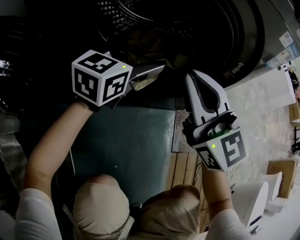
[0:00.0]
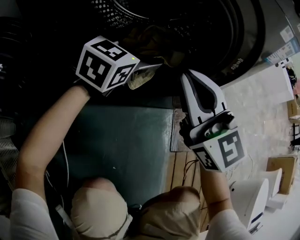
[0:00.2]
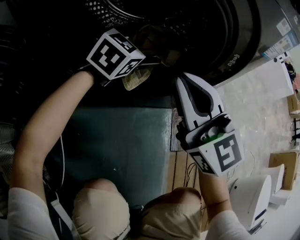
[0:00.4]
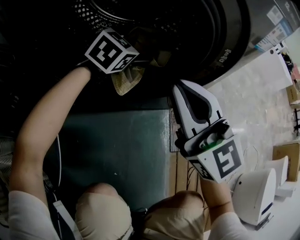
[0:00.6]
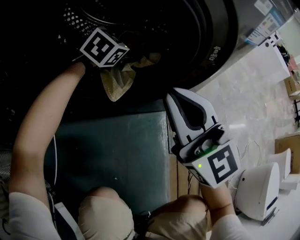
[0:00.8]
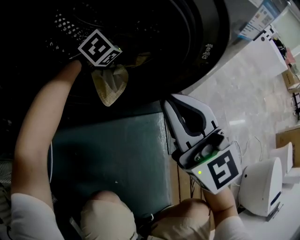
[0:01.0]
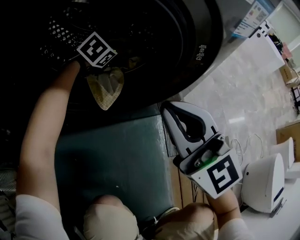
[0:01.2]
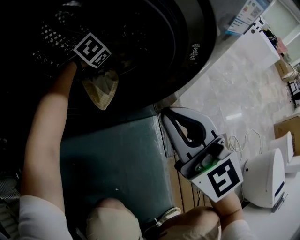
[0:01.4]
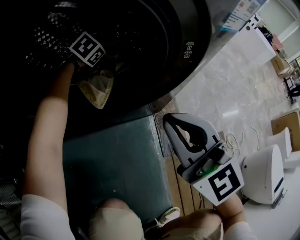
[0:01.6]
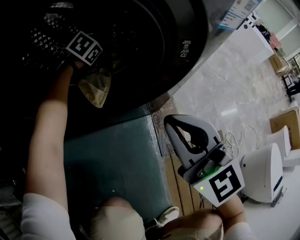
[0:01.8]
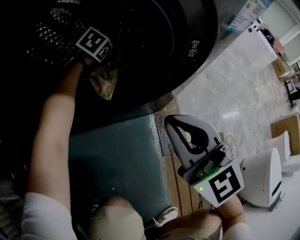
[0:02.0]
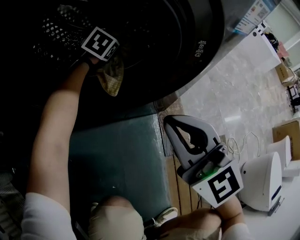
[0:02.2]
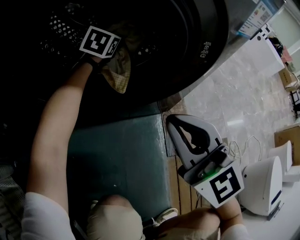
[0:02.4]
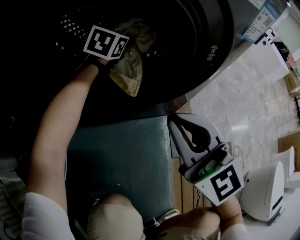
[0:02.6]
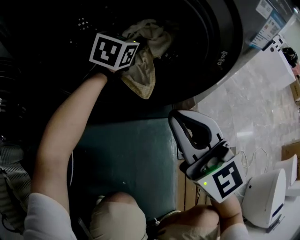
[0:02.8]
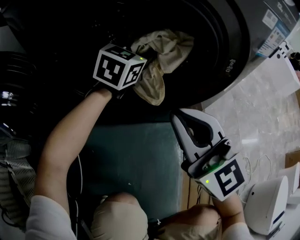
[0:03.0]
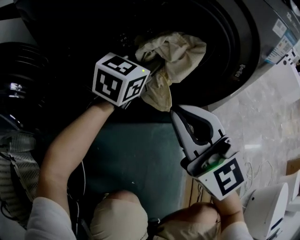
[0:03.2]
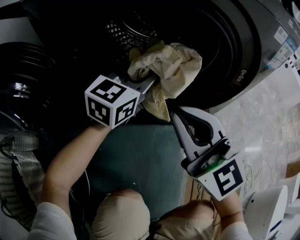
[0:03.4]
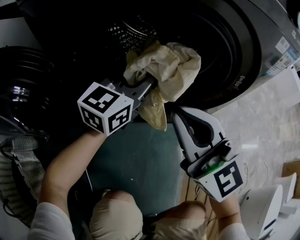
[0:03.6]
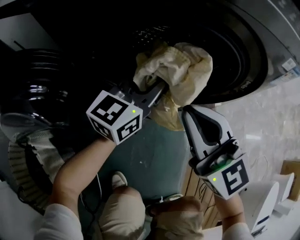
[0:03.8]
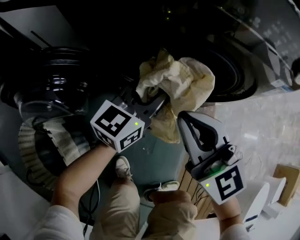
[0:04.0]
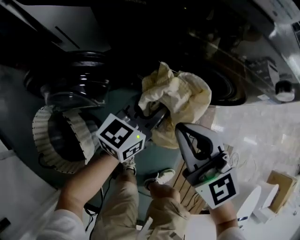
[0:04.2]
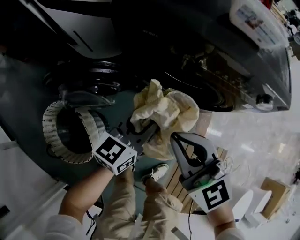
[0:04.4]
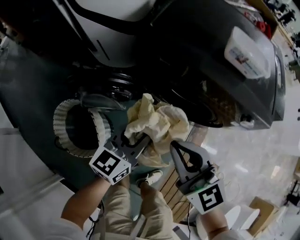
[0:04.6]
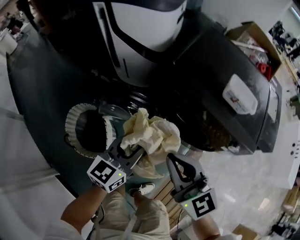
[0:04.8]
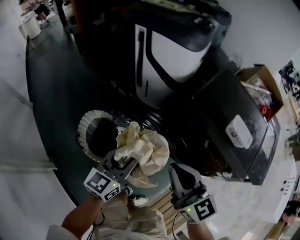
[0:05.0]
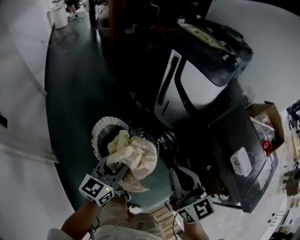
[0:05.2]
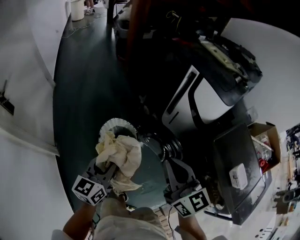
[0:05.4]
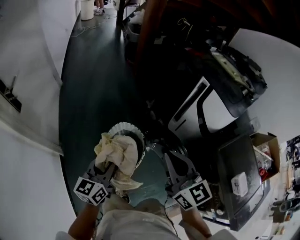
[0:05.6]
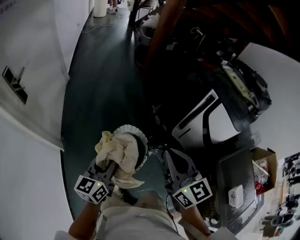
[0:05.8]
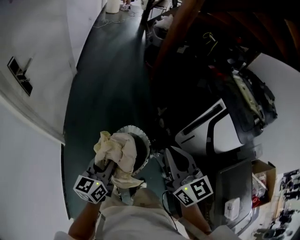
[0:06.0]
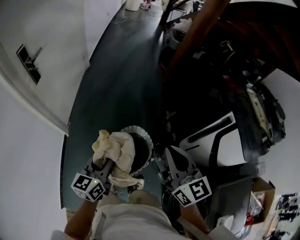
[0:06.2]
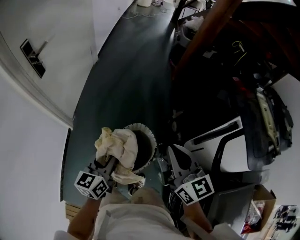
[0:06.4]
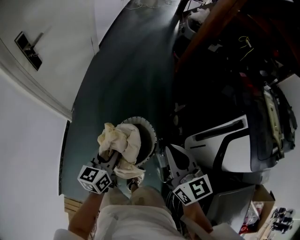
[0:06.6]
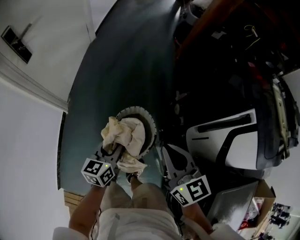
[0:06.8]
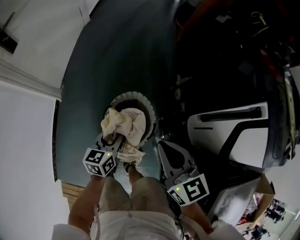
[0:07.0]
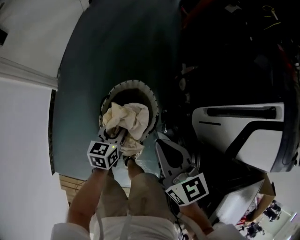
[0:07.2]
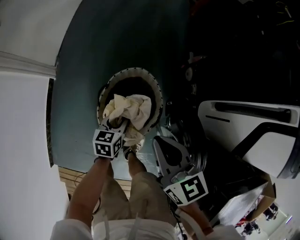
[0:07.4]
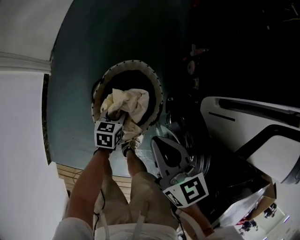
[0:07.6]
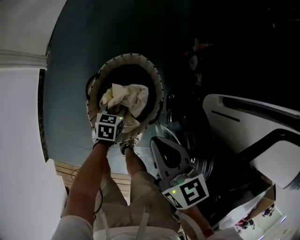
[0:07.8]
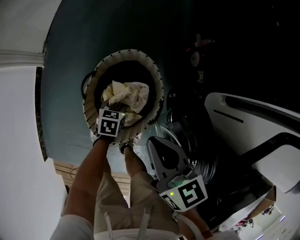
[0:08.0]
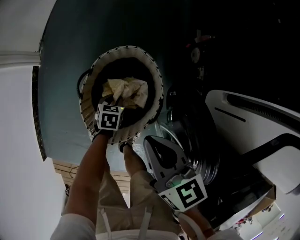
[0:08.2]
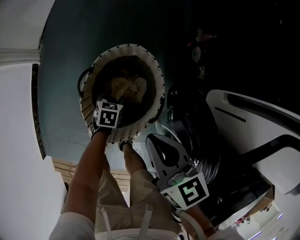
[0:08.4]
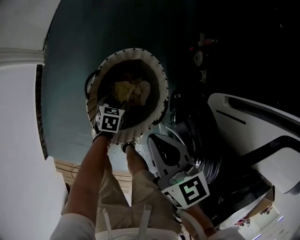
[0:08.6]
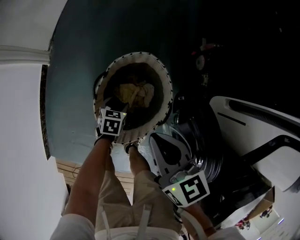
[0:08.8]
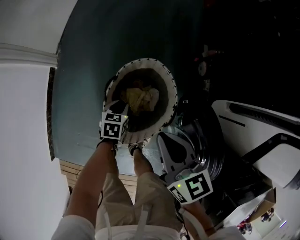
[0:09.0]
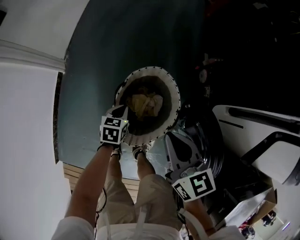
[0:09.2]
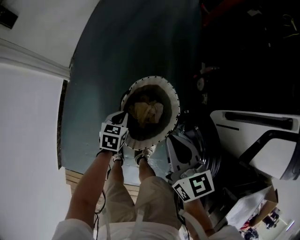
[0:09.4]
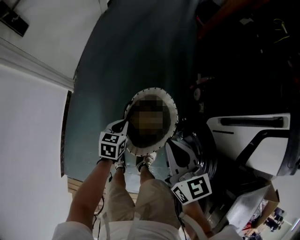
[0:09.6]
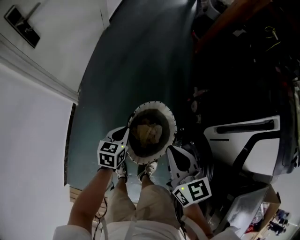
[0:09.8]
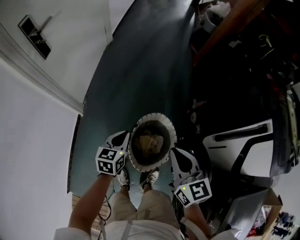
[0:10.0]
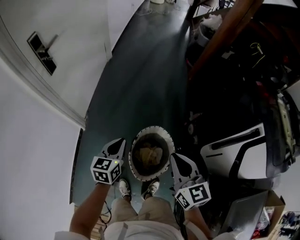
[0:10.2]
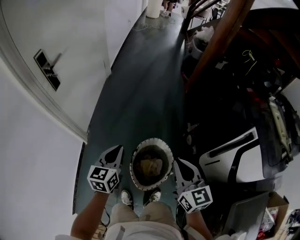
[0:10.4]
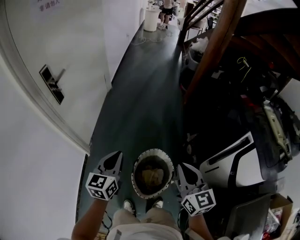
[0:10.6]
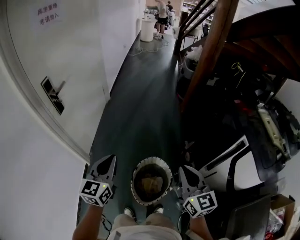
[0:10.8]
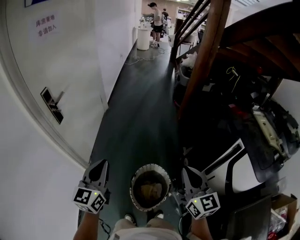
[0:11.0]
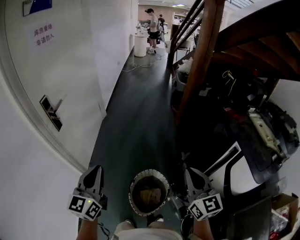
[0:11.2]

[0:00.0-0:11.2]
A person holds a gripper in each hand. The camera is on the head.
0:00.0 to 0:01.6: The right gripper is displaced to the right and downward by roughly 10 cm. The left gripper moves forward and downward, some 25 cm, and tips its fingers downward by approximately 40 degrees.
0:01.6 to 0:03.2: The right gripper is displaced to the left by some 10 cm; the left gripper goes about 25 cm upward and backward, points its fingers about 40 degrees further upward, and closes up.
0:03.2 to 0:04.8: The grippers both shift upward by some 50 cm. The right gripper rotates about 30 degrees; the left gripper rotates approximately 40 degrees.
0:04.8 to 0:06.4: The pair of grippers is taken approximately 50 cm. The left gripper rotates about 80 degrees, while the right gripper swivels about 50 degrees.
0:06.4 to 0:08.0: The two grippers go roughly 50 cm downward. The right gripper turns by roughly 30 degrees. The left gripper angles its fingers downward, by approximately 50 degrees.
0:08.0 to 0:09.6: Both grippers travel together upward and to the left, about 25 cm.
0:09.6 to 0:11.2: The left gripper shifts approximately 60 cm upward, and angles its fingers upward, by about 50 degrees. Meanwhile the right gripper is displaced upward by some 35 cm, and swivels approximately 30 degrees.

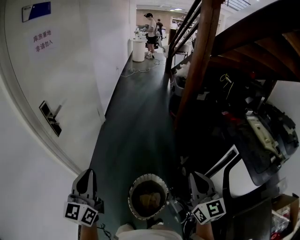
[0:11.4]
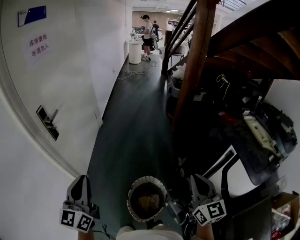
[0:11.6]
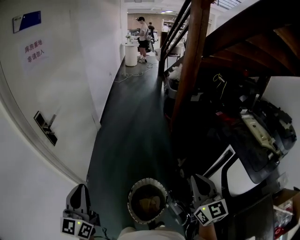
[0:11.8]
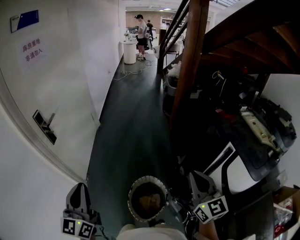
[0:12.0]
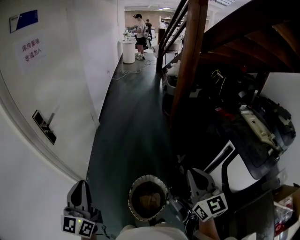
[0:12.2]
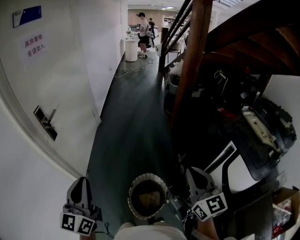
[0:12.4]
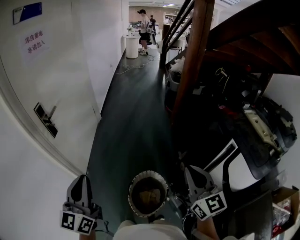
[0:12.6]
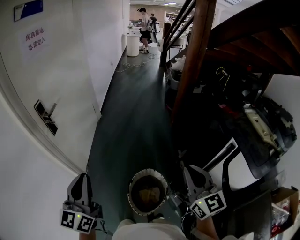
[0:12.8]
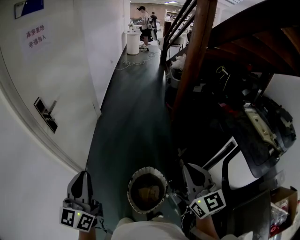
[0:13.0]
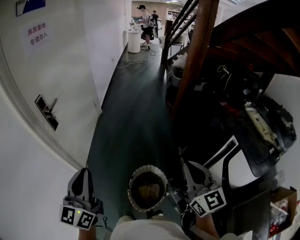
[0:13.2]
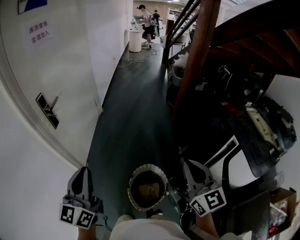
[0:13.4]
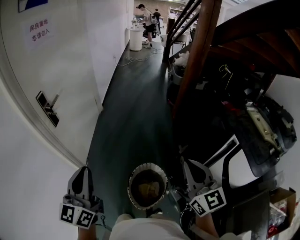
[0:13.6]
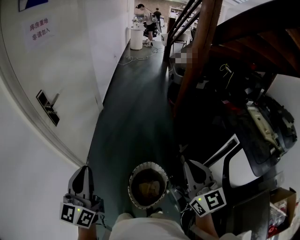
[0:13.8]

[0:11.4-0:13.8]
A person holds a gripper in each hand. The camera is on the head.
0:11.4 to 0:13.8: The grippers stay close to where they were, moving slightly.

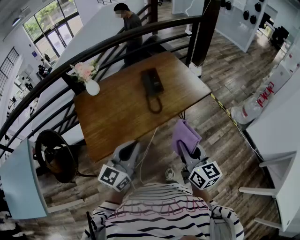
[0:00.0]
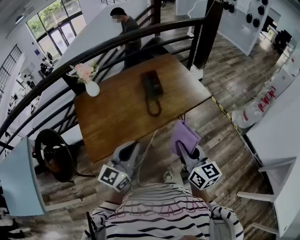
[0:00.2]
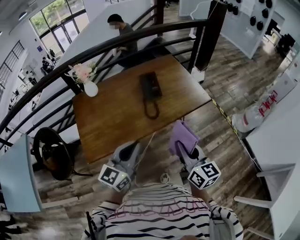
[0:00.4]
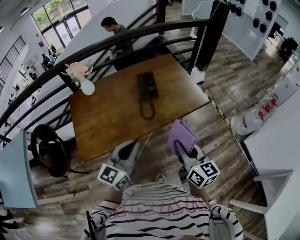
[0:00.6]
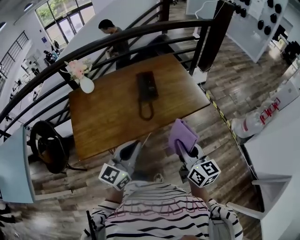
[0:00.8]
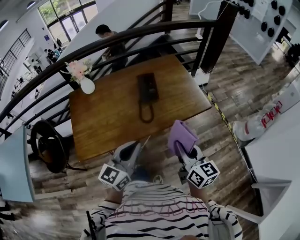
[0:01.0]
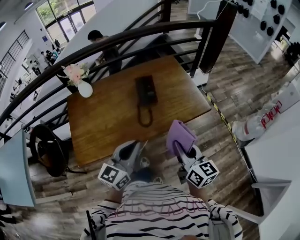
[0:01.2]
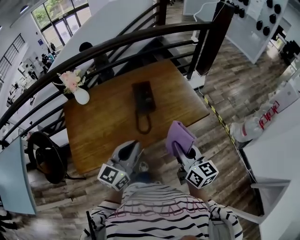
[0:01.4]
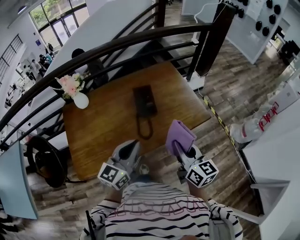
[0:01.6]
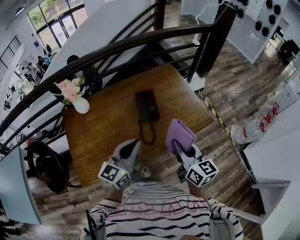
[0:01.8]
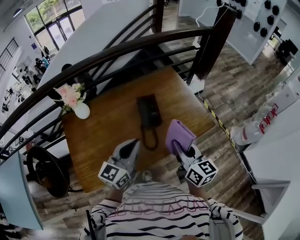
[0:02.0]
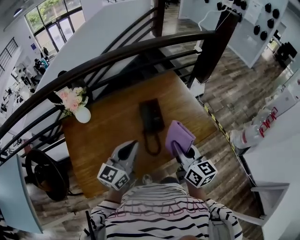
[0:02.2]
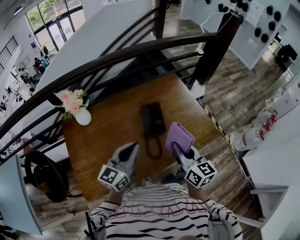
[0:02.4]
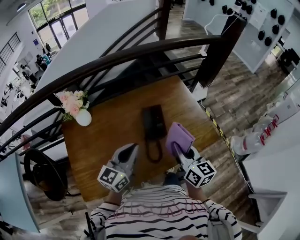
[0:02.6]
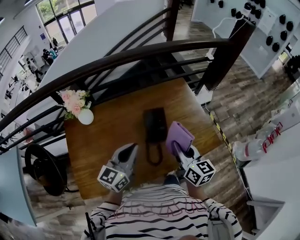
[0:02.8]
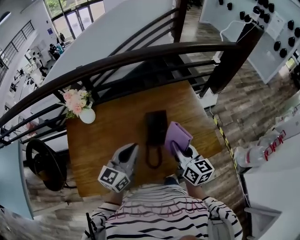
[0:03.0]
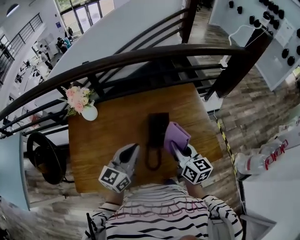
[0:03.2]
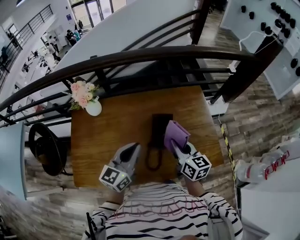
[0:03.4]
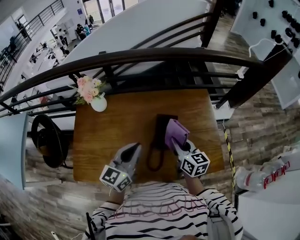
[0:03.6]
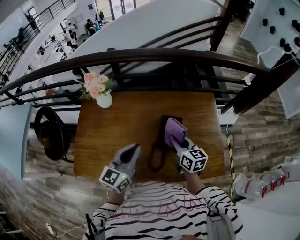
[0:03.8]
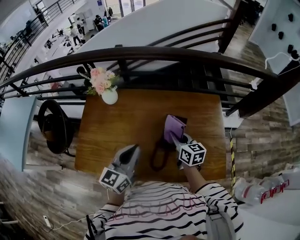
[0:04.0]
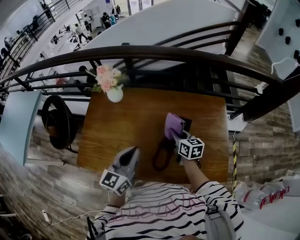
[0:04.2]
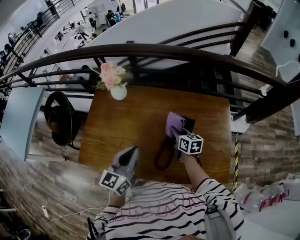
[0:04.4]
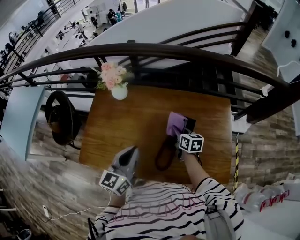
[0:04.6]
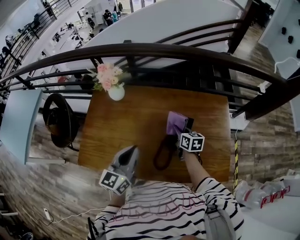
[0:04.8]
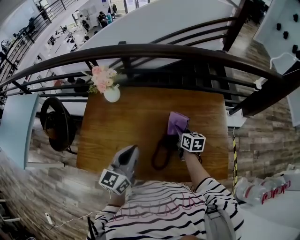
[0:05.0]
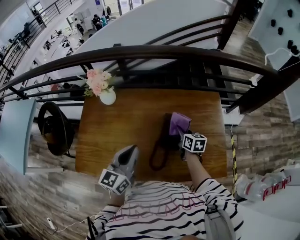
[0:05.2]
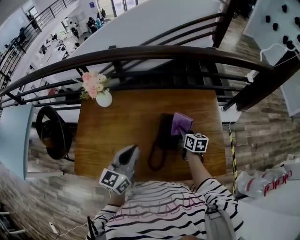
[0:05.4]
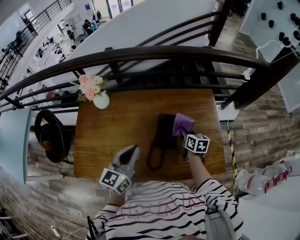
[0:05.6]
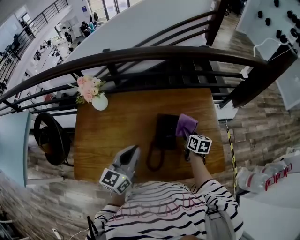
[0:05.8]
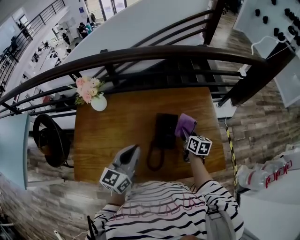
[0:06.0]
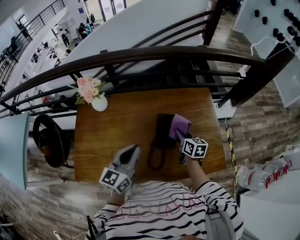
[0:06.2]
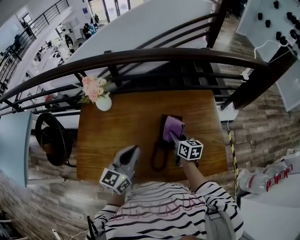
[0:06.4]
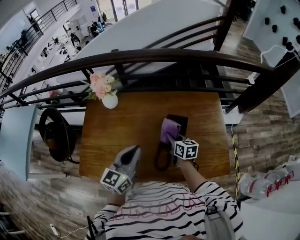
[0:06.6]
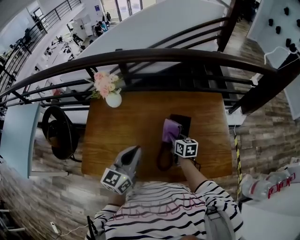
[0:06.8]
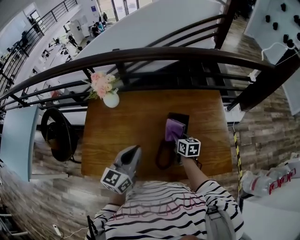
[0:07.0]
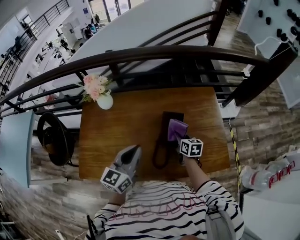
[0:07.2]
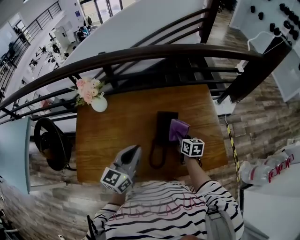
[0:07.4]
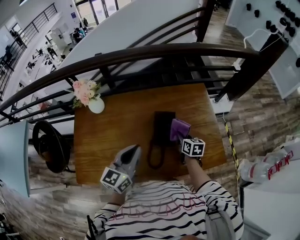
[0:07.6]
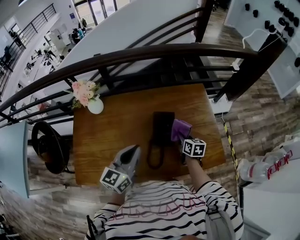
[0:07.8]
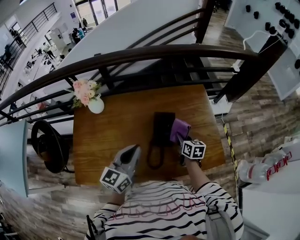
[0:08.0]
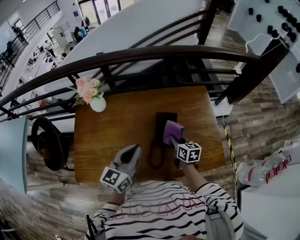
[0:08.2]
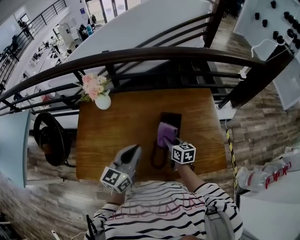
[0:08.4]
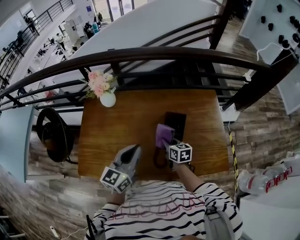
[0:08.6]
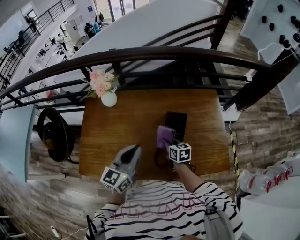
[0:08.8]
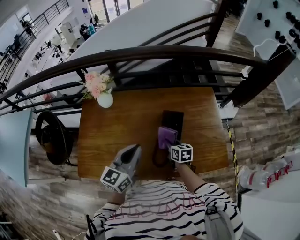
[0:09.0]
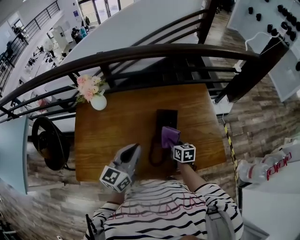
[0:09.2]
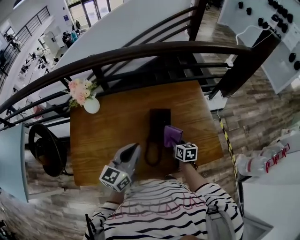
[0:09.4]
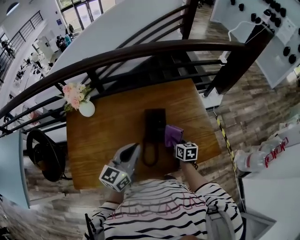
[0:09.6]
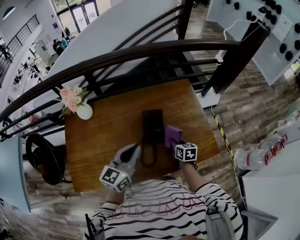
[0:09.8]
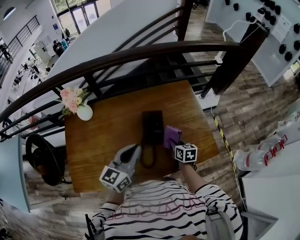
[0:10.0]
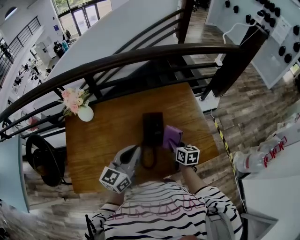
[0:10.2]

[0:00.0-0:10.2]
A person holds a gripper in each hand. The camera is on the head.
0:00.0 to 0:01.4: The grippers both shift forward and to the right by roughly 20 cm.
0:01.4 to 0:03.0: The right gripper is displaced forward by about 25 cm, while the left gripper shifts about 25 cm forward and to the left.
0:03.0 to 0:04.4: The left gripper shifts by some 5 cm, and changes its angle by about 30 degrees. Meanwhile the right gripper ends up some 25 cm from where it was, and turns by about 30 degrees.
0:04.4 to 0:05.8: The right gripper is displaced to the right by some 15 cm, and swivels some 20 degrees, while the left gripper moves to the right, roughly 5 cm.
0:05.8 to 0:07.2: The right gripper is displaced to the left by approximately 10 cm.
0:07.2 to 0:08.8: The right gripper is displaced to the left by about 10 cm.
0:08.8 to 0:10.2: The right gripper shifts roughly 15 cm to the right. Meanwhile the left gripper is displaced to the right by roughly 10 cm.
